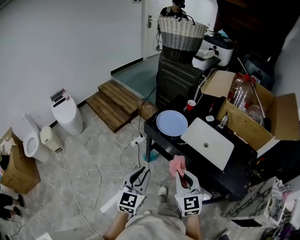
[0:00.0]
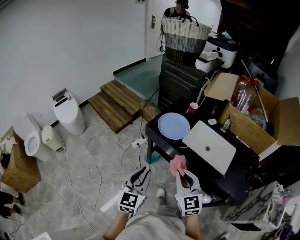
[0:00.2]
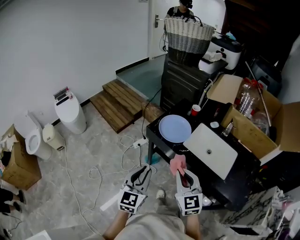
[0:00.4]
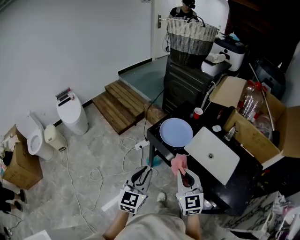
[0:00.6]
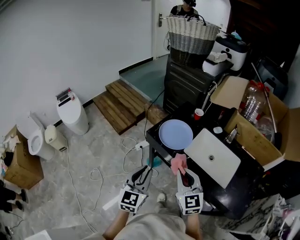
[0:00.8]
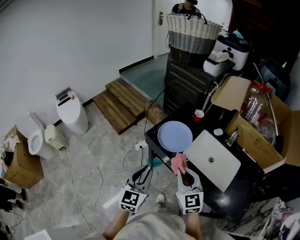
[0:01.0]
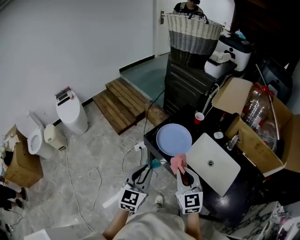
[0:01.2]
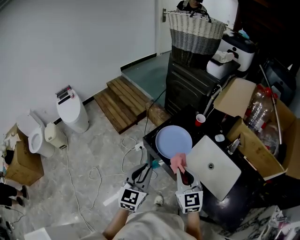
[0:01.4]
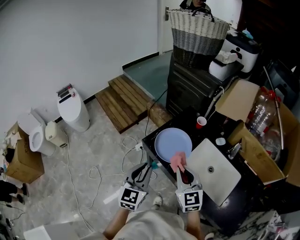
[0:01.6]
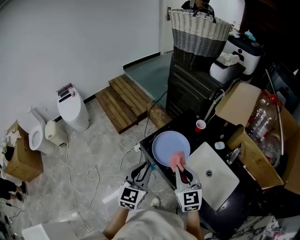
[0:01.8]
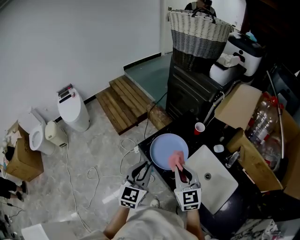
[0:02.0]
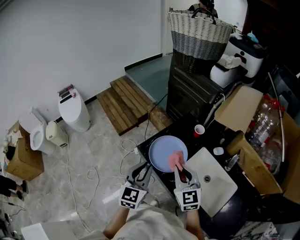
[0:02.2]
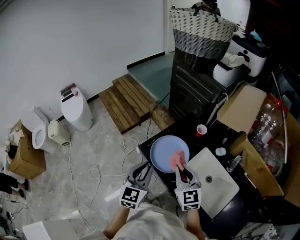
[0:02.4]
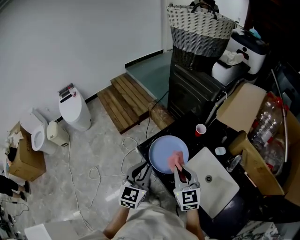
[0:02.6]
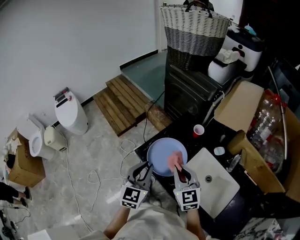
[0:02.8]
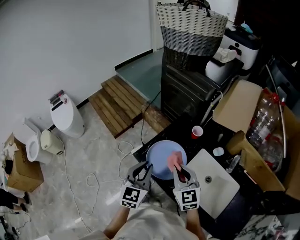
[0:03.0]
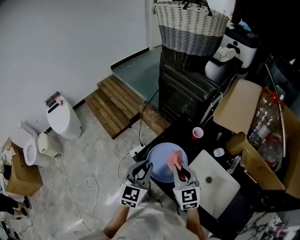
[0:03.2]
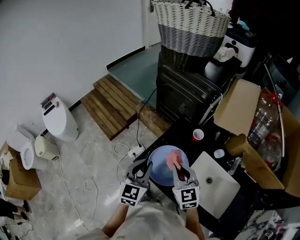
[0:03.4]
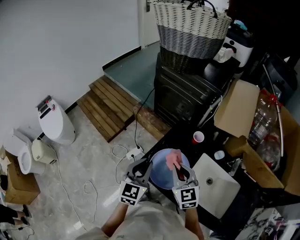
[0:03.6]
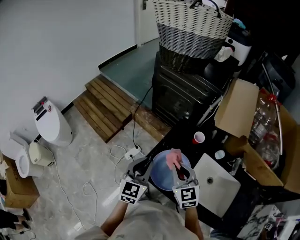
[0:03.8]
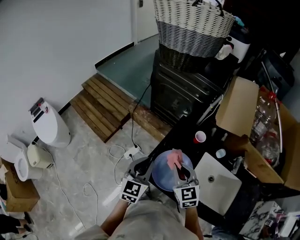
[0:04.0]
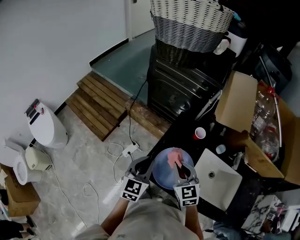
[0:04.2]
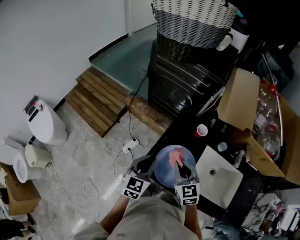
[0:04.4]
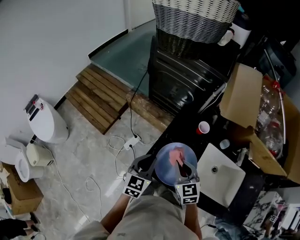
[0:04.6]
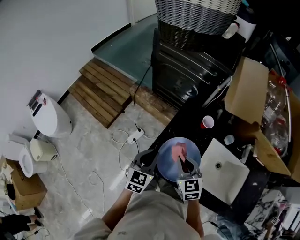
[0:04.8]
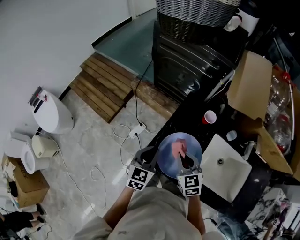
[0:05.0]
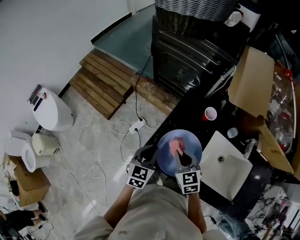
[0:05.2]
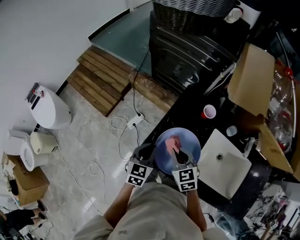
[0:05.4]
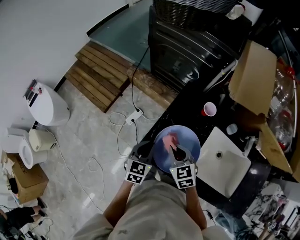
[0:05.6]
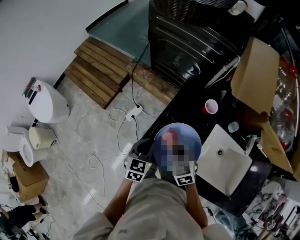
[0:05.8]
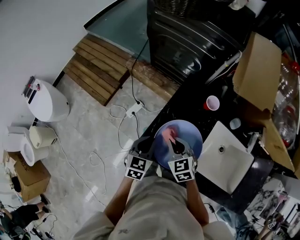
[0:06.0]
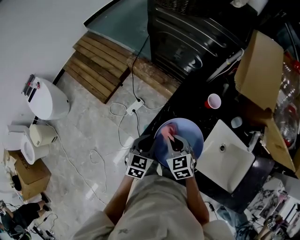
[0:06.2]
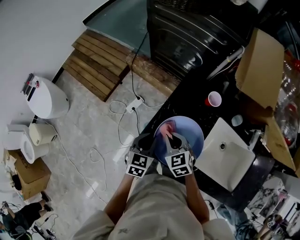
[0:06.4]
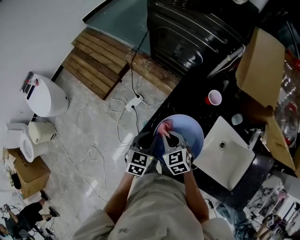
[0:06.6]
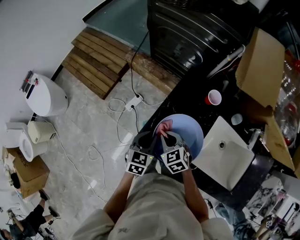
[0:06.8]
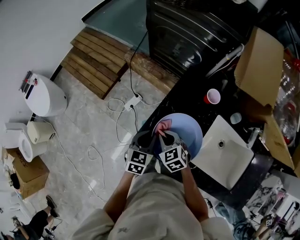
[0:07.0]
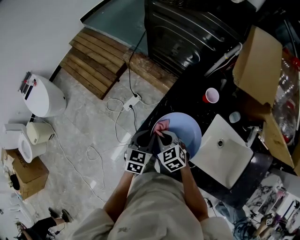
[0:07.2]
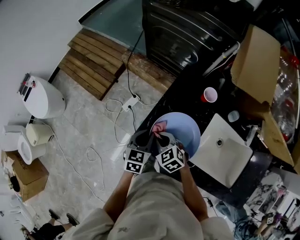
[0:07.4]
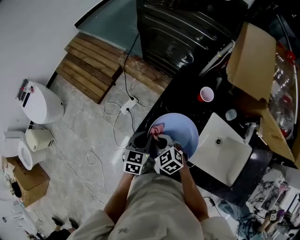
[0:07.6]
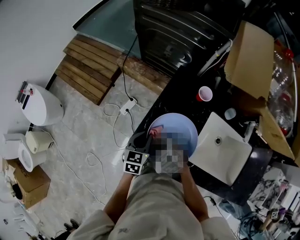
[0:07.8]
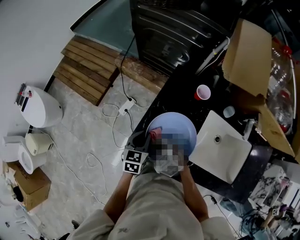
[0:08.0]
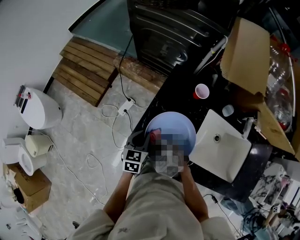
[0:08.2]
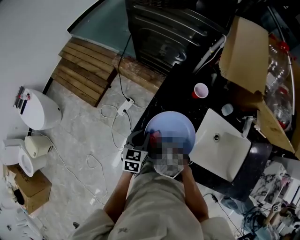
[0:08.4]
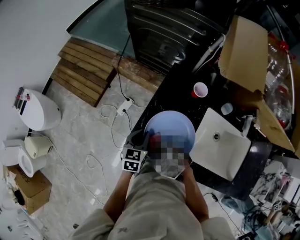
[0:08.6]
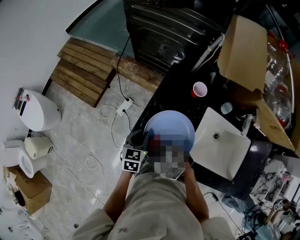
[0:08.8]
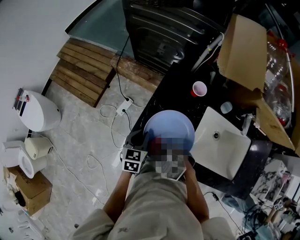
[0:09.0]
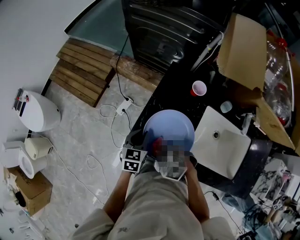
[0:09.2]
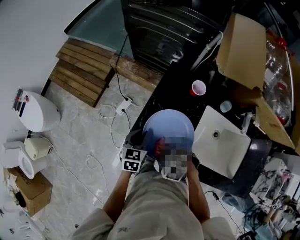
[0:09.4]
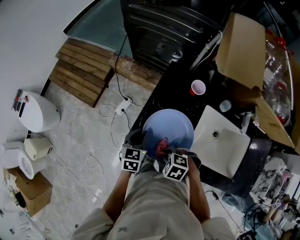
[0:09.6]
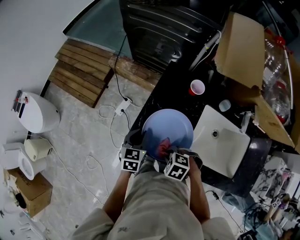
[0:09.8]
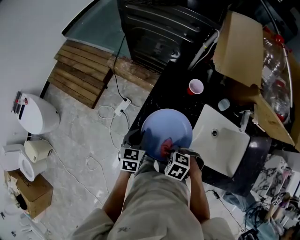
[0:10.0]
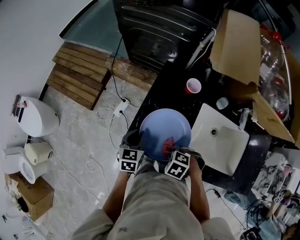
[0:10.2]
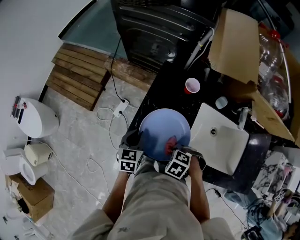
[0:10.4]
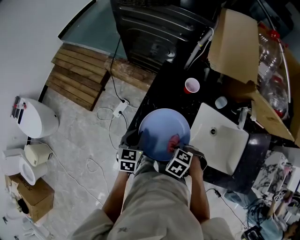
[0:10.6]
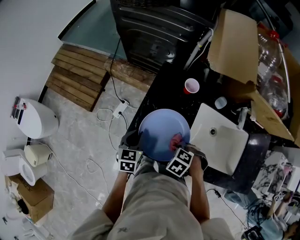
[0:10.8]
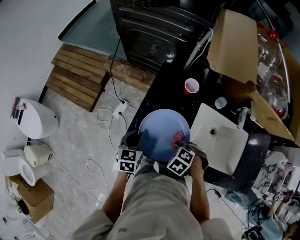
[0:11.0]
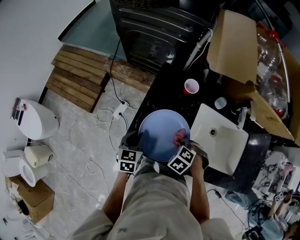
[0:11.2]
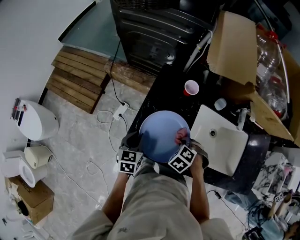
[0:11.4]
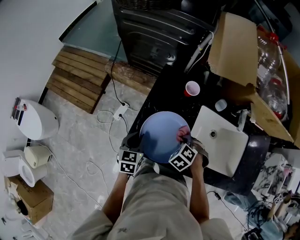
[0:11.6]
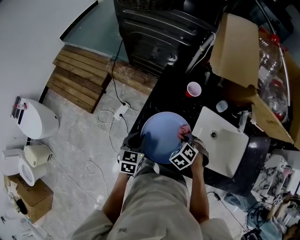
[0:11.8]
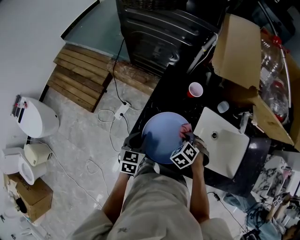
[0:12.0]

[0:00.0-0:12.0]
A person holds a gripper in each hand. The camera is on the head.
0:00.0 to 0:01.6: Both grippers move forward, about 25 cm.
0:01.6 to 0:03.0: The right gripper is displaced forward by some 10 cm; the left gripper moves forward and to the right, some 15 cm.
0:03.0 to 0:04.4: The right gripper is displaced forward, to the left and downward by roughly 15 cm. The left gripper goes about 15 cm forward, downward and to the left, and turns by about 20 degrees.
0:04.4 to 0:06.0: The grippers both shift downward by about 15 cm.
0:06.0 to 0:07.6: The right gripper travels to the left by about 5 cm.
0:07.6 to 0:09.0: The right gripper shifts about 10 cm backward, and swivels some 20 degrees.
0:09.0 to 0:10.4: The right gripper changes place by roughly 10 cm, and swivels approximately 20 degrees.
0:10.4 to 0:12.0: The right gripper ends up about 10 cm from where it was, and changes its angle by roughly 30 degrees.

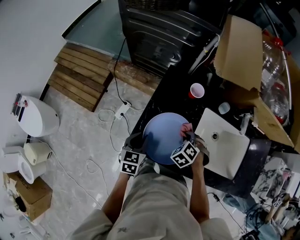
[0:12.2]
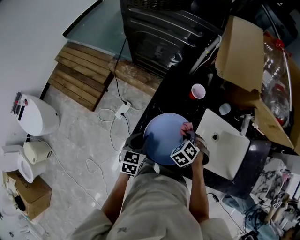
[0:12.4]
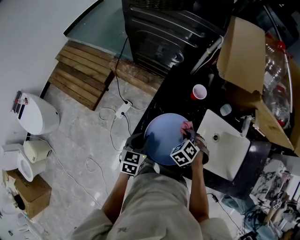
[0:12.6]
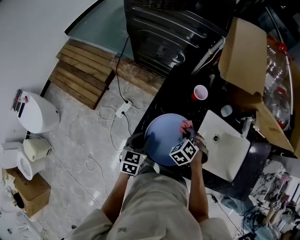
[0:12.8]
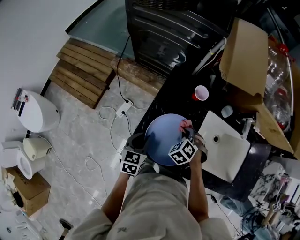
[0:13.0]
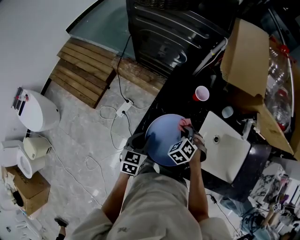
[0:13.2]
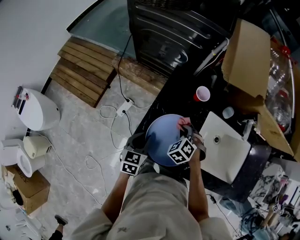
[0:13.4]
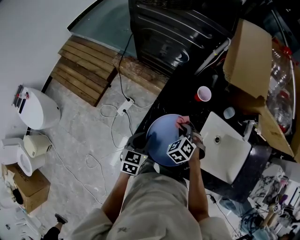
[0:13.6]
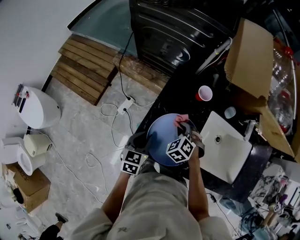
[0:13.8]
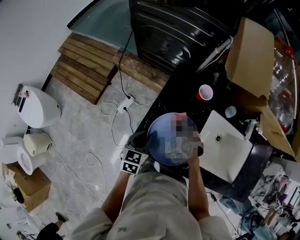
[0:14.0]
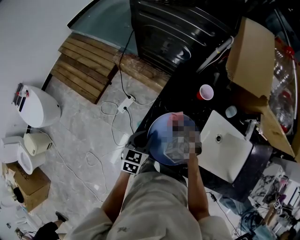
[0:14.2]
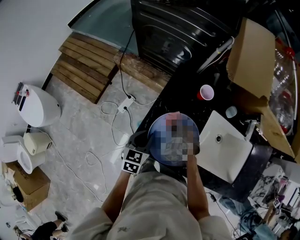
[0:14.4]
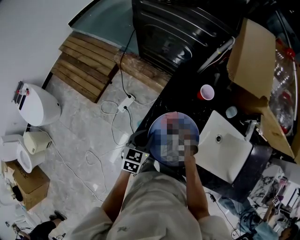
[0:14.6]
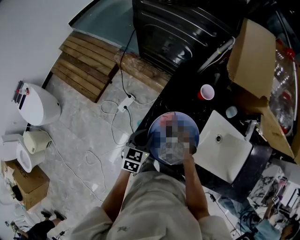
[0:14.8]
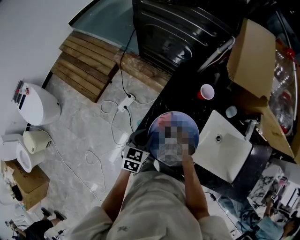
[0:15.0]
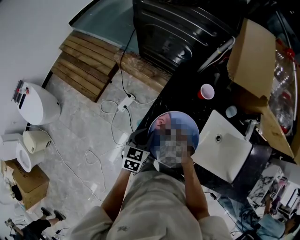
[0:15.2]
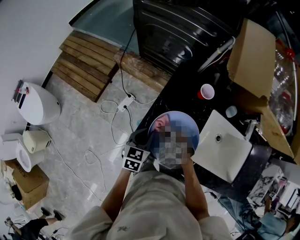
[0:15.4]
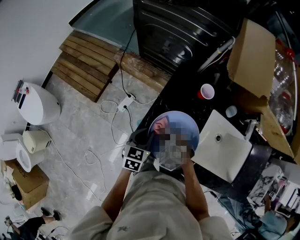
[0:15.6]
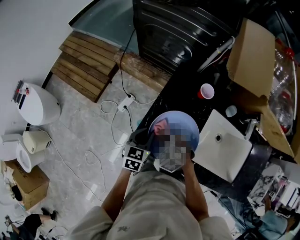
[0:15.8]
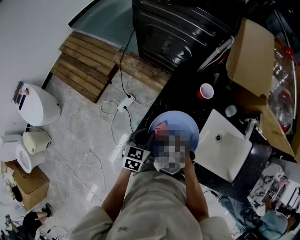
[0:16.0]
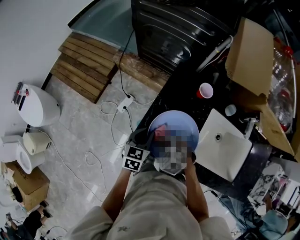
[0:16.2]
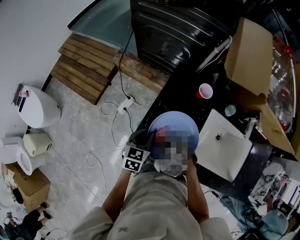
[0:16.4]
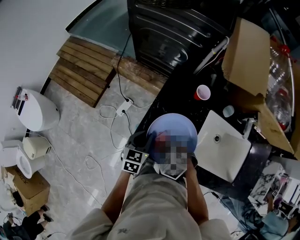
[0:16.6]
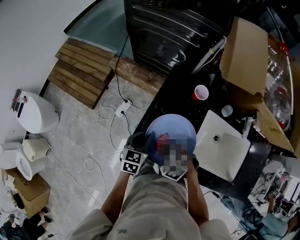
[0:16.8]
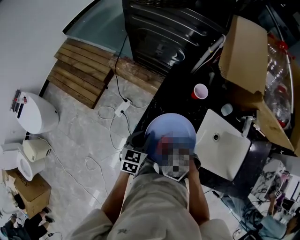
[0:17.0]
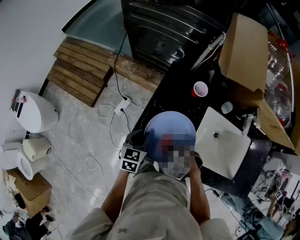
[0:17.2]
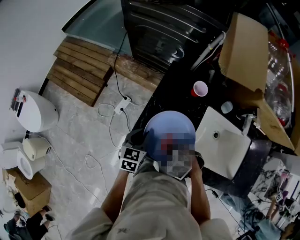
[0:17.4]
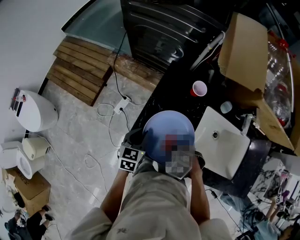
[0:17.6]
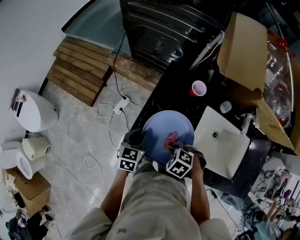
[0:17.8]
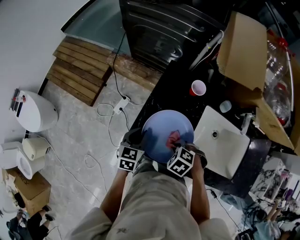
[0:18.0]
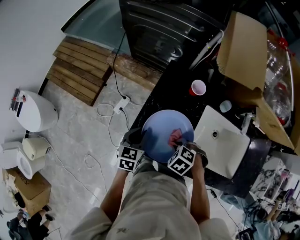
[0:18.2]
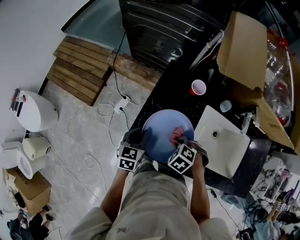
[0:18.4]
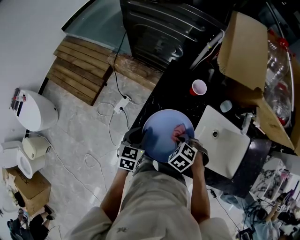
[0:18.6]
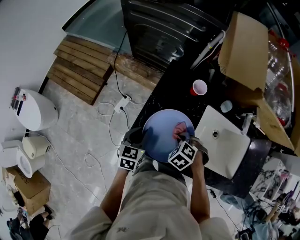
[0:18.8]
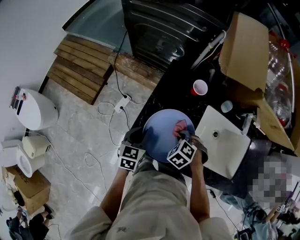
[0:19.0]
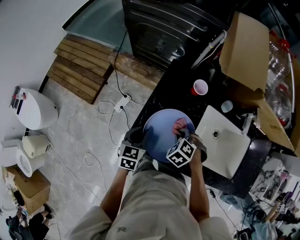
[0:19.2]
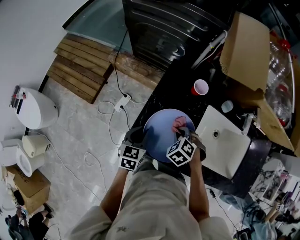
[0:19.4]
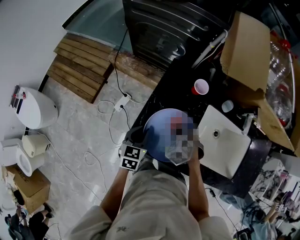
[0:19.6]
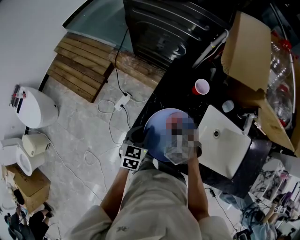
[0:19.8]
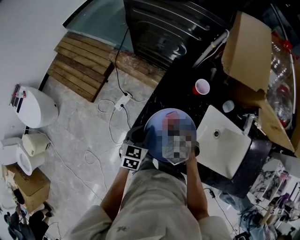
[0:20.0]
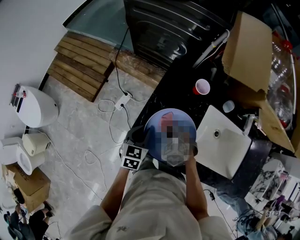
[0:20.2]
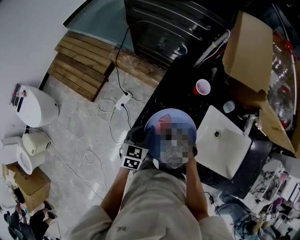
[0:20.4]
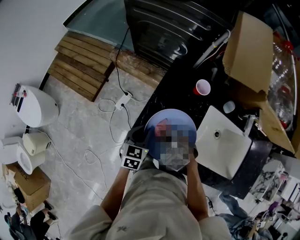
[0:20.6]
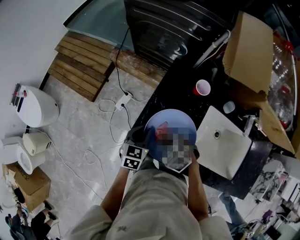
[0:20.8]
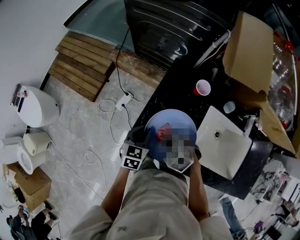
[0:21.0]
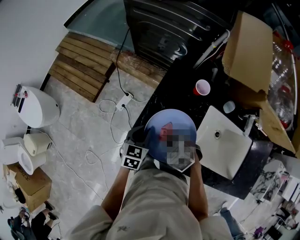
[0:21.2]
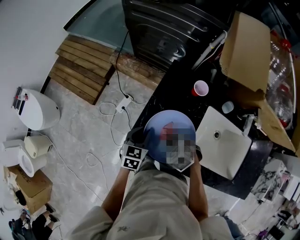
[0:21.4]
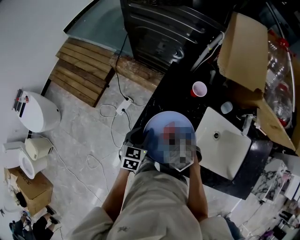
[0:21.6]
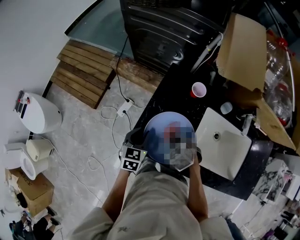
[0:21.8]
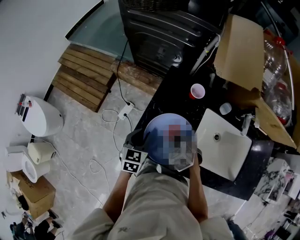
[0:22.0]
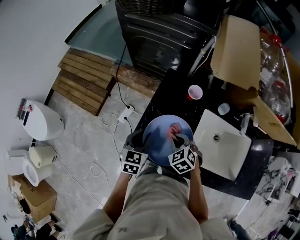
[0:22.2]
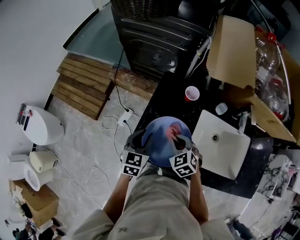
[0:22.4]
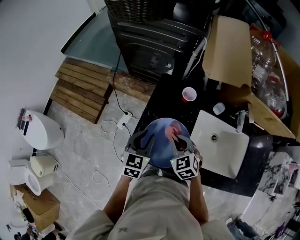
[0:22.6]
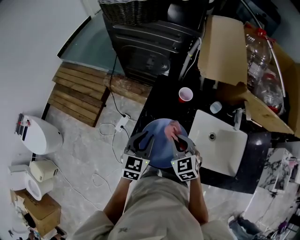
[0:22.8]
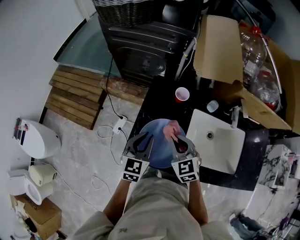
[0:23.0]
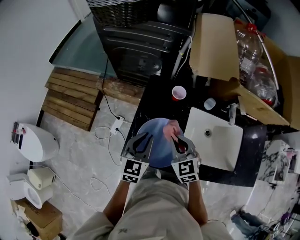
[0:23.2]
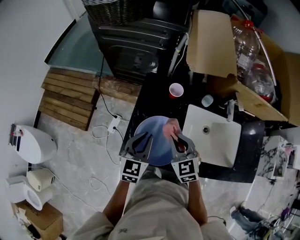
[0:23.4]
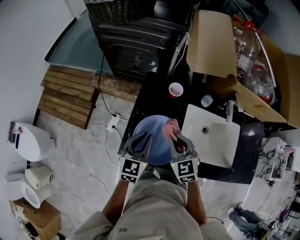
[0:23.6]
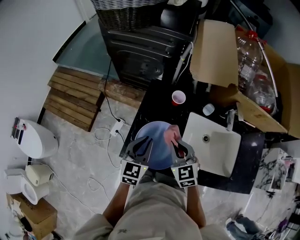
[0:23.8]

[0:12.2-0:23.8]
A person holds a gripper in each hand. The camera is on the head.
0:12.2 to 0:13.6: The right gripper is displaced to the left by about 5 cm.
0:13.6 to 0:15.0: The right gripper heads to the left, covering some 10 cm.
0:15.0 to 0:16.6: The right gripper is displaced backward by some 10 cm.
0:16.6 to 0:18.0: The right gripper shifts by approximately 10 cm.
0:18.0 to 0:19.4: The right gripper moves about 5 cm.
0:19.4 to 0:21.0: The right gripper changes place by roughly 10 cm, and changes its angle by approximately 20 degrees.
0:21.0 to 0:22.4: The right gripper heads to the right, covering some 5 cm, and changes its angle by some 30 degrees, while the left gripper is displaced upward by approximately 5 cm.
0:22.4 to 0:23.8: The right gripper travels upward by roughly 10 cm, and rotates approximately 20 degrees, while the left gripper heads upward and to the right, covering roughly 10 cm.
